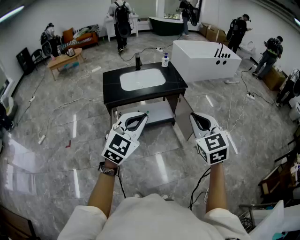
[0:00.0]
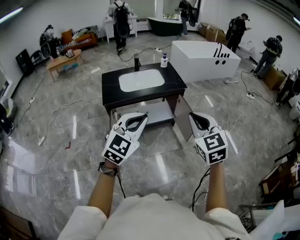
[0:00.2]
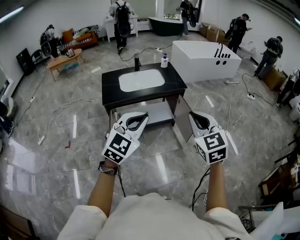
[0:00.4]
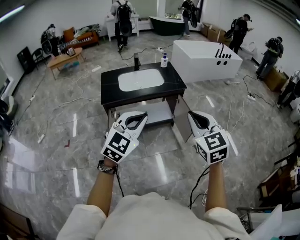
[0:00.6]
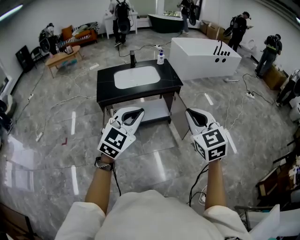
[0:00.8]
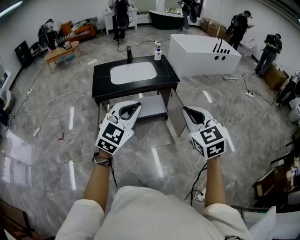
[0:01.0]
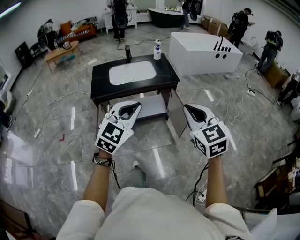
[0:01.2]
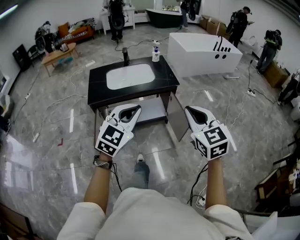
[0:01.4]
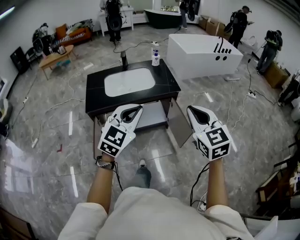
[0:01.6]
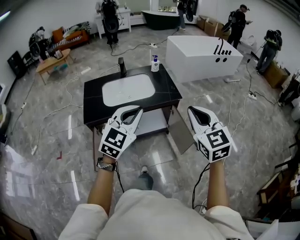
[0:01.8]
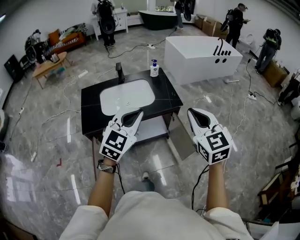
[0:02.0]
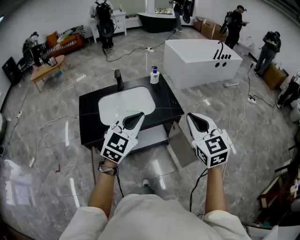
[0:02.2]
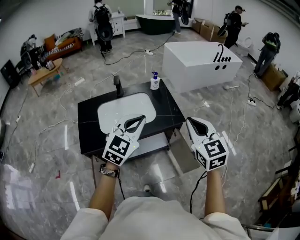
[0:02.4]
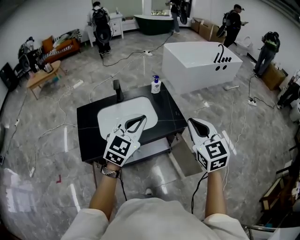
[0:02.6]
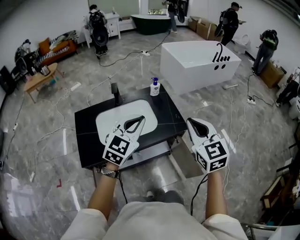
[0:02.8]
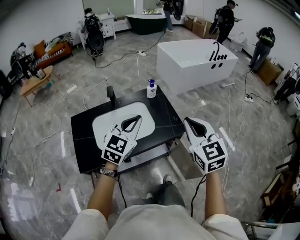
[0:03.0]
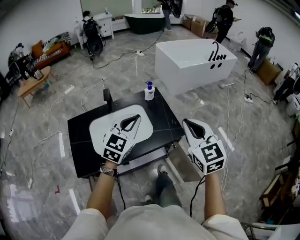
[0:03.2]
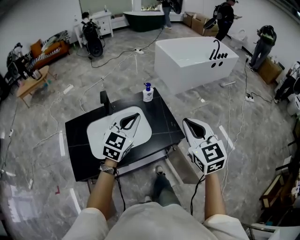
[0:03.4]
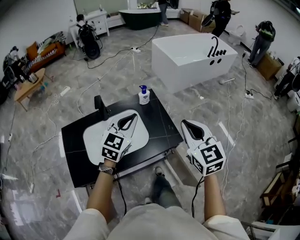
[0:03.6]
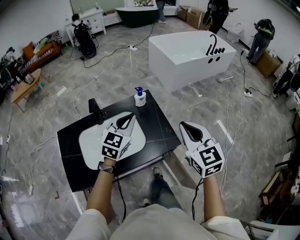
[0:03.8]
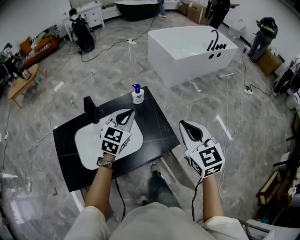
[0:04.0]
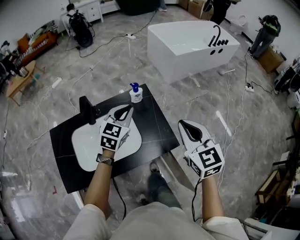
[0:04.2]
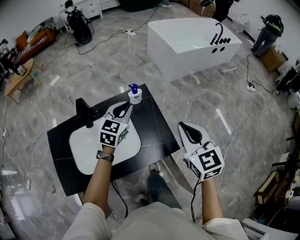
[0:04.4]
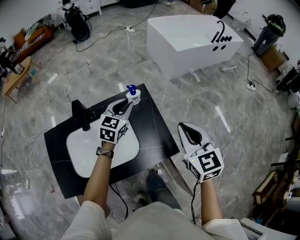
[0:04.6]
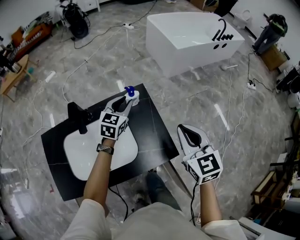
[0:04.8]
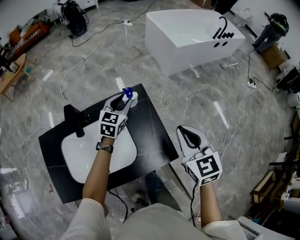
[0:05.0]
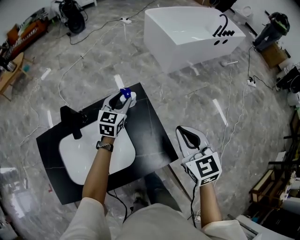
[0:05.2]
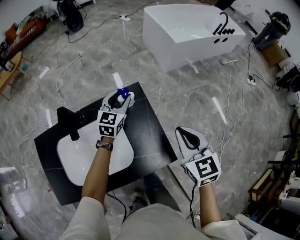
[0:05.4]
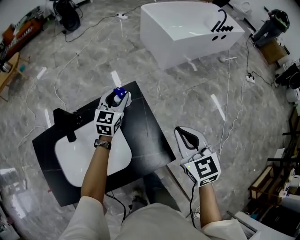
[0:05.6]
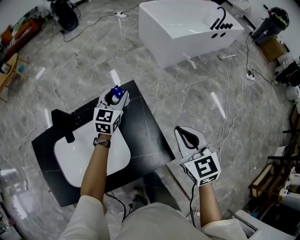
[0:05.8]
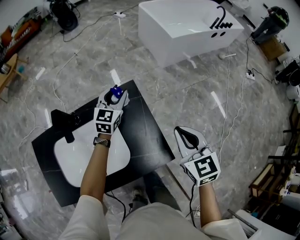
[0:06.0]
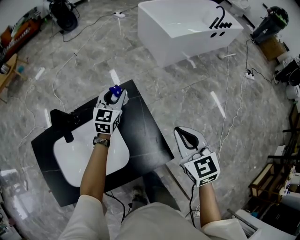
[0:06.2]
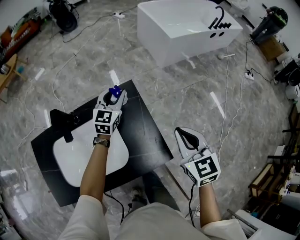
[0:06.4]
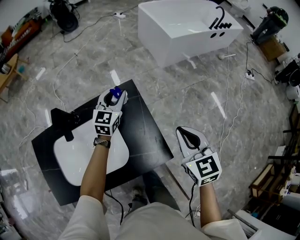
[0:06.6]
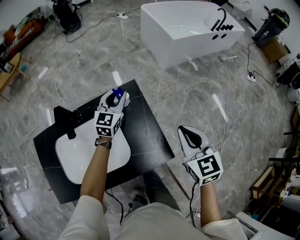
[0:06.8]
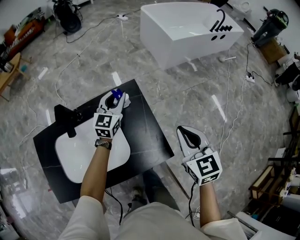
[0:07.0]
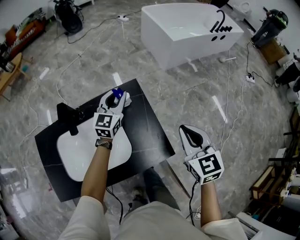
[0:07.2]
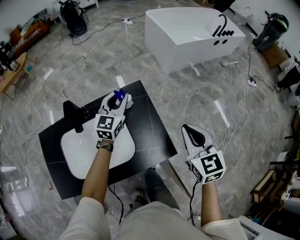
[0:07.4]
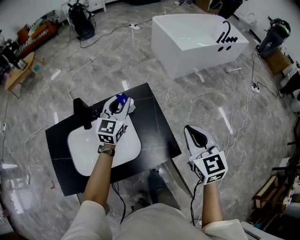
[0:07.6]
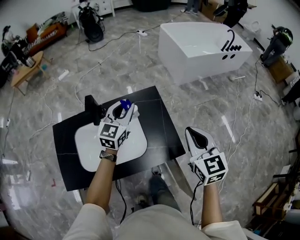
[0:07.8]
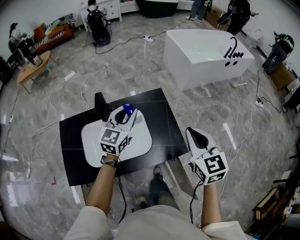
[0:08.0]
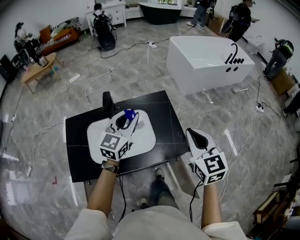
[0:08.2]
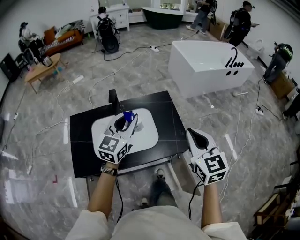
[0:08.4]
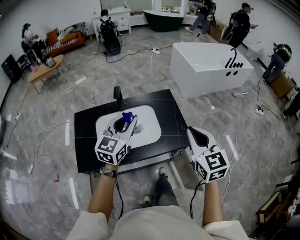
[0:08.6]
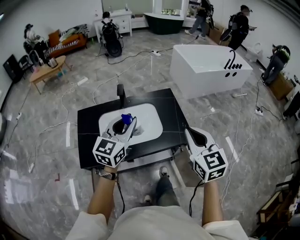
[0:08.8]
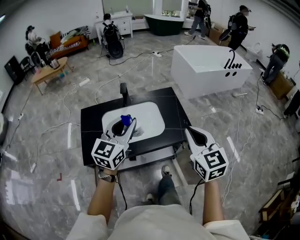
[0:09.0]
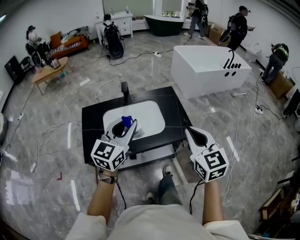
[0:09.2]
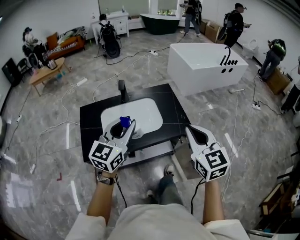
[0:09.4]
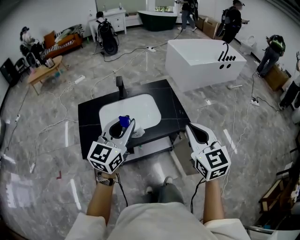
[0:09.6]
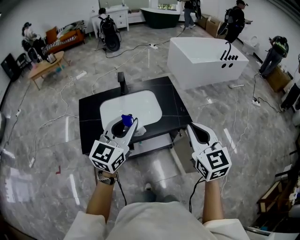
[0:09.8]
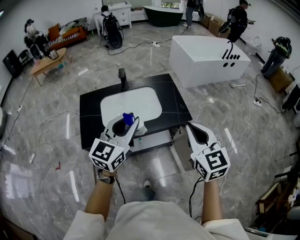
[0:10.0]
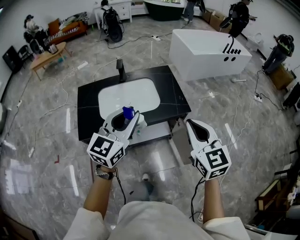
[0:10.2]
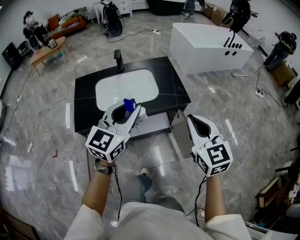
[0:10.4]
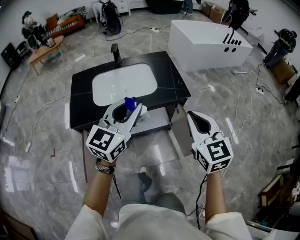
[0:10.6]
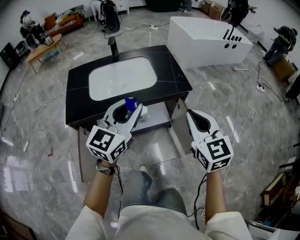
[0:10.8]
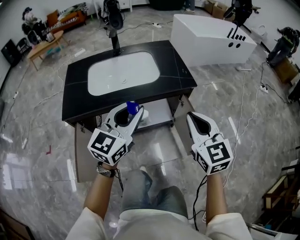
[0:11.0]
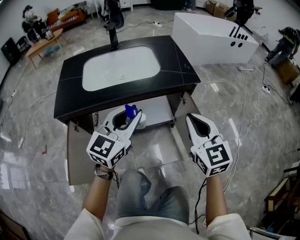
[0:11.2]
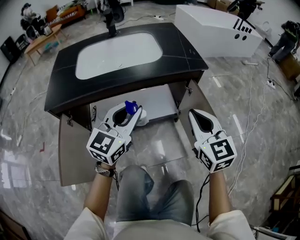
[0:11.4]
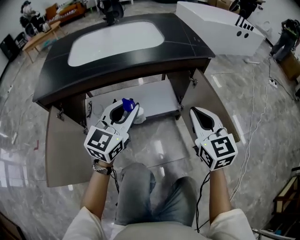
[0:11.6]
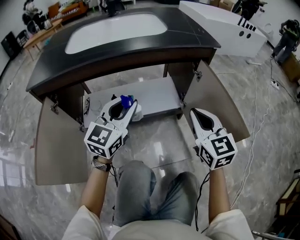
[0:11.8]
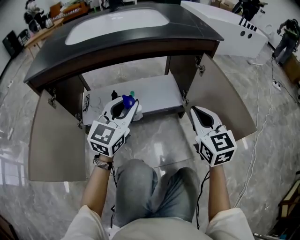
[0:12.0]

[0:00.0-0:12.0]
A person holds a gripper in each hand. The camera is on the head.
0:00.0 to 0:01.6: The grippers both shift forward by roughly 20 cm.
0:01.6 to 0:03.0: Both grippers travel together forward, roughly 40 cm.
0:03.0 to 0:04.4: The two grippers go roughly 30 cm forward and downward.
0:04.4 to 0:06.0: Both grippers travel together forward and downward, some 15 cm. The left gripper opens its fingers.
0:06.0 to 0:07.6: The left gripper goes about 15 cm backward and upward. The right gripper heads backward and upward, covering roughly 10 cm.
0:07.6 to 0:09.0: The left gripper moves backward and upward, about 40 cm, while the right gripper goes some 30 cm backward and to the left.
0:09.0 to 0:10.4: Both grippers travel together backward and to the right, about 15 cm.
0:10.4 to 0:12.0: Both grippers move downward, some 60 cm.

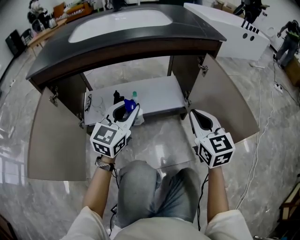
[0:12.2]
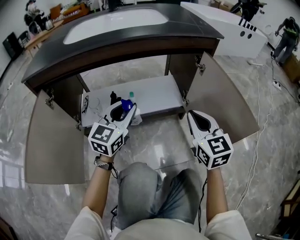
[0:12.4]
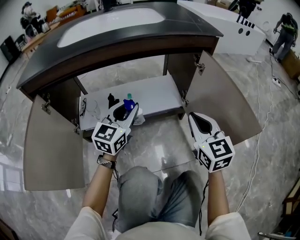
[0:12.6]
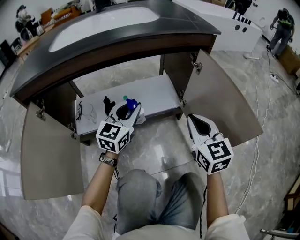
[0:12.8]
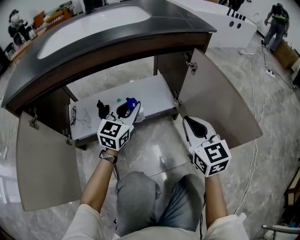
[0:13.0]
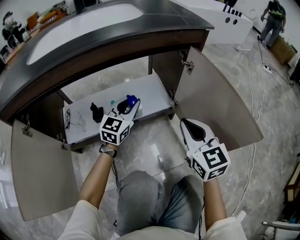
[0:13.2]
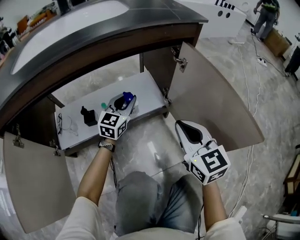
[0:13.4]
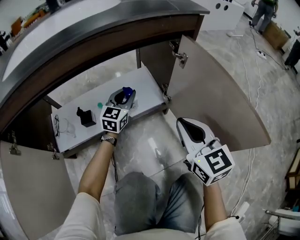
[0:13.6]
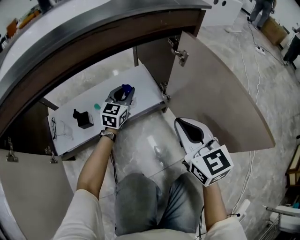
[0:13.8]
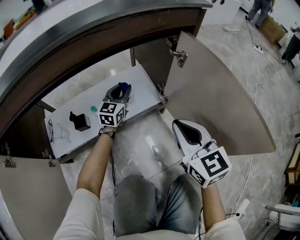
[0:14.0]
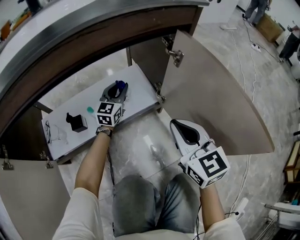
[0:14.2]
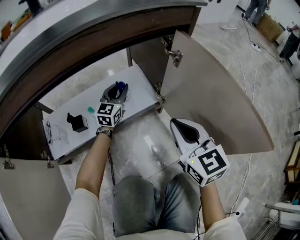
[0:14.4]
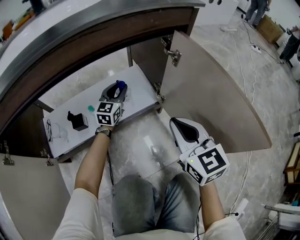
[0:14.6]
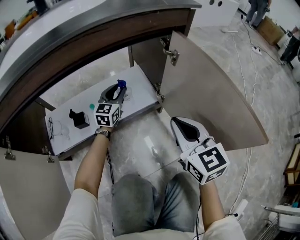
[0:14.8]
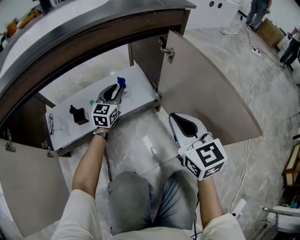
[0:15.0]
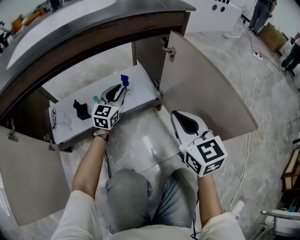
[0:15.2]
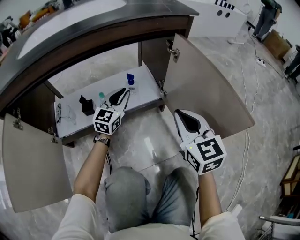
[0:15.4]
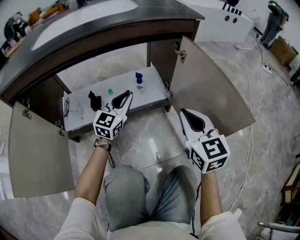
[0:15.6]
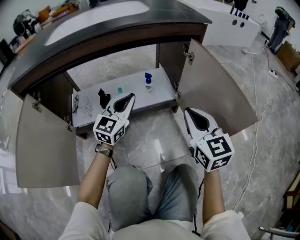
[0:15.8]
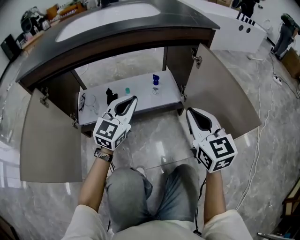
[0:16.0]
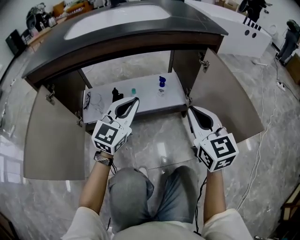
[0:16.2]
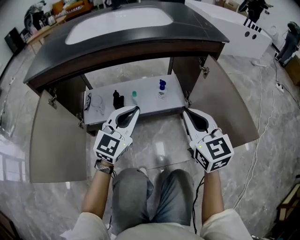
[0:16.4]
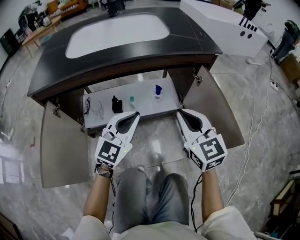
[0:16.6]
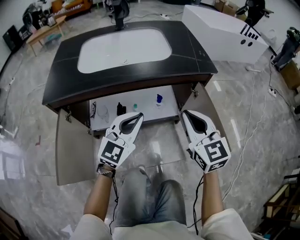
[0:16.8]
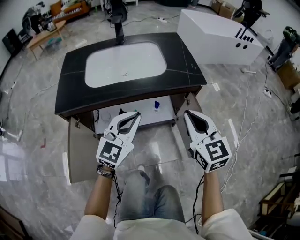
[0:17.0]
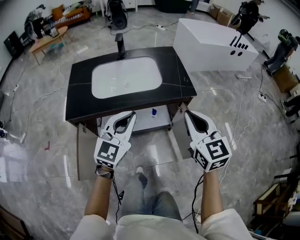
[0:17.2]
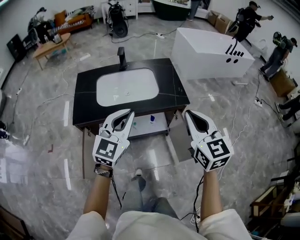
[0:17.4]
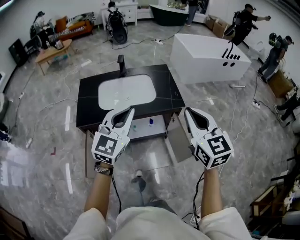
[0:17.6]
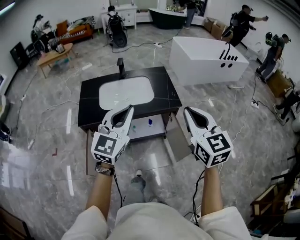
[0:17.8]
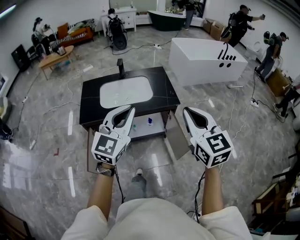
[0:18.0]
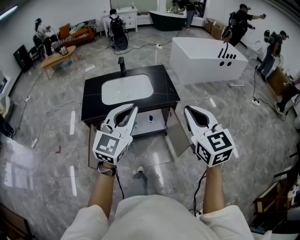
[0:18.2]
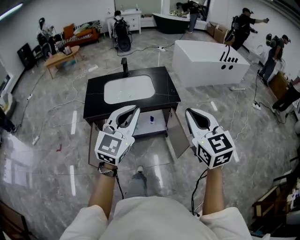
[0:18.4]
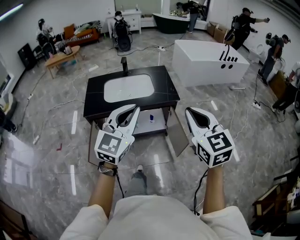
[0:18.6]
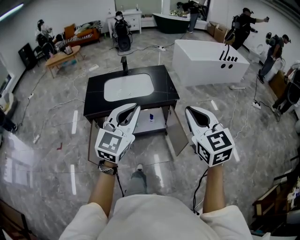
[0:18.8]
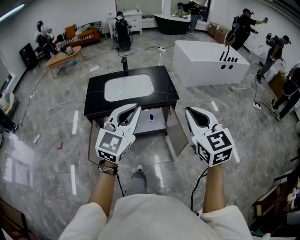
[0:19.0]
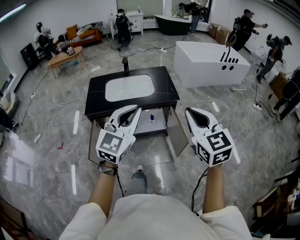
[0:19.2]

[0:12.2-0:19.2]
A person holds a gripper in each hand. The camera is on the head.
0:12.2 to 0:13.6: The left gripper moves forward and downward, about 30 cm; the right gripper moves downward and forward, some 10 cm.
0:15.0 to 0:16.4: The left gripper travels backward and upward by about 30 cm, and closes. Meanwhile the right gripper is displaced upward, to the left and backward by roughly 15 cm.
0:16.4 to 0:17.8: The grippers both shift upward by roughly 60 cm.
0:17.8 to 0:19.2: The right gripper shifts about 15 cm backward, while the left gripper goes some 15 cm backward and to the right.

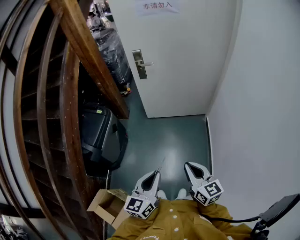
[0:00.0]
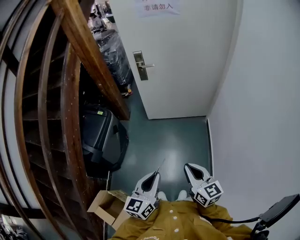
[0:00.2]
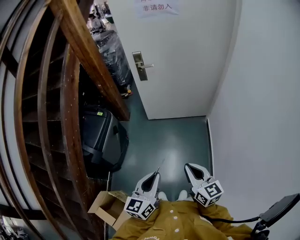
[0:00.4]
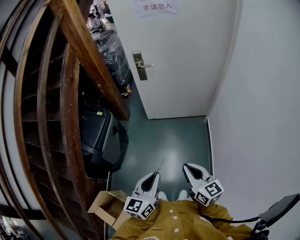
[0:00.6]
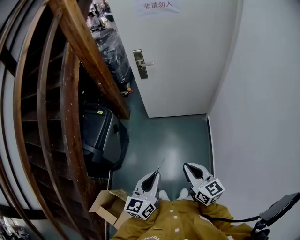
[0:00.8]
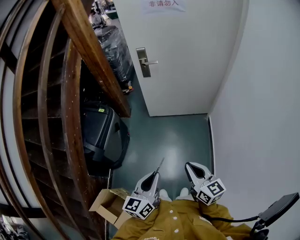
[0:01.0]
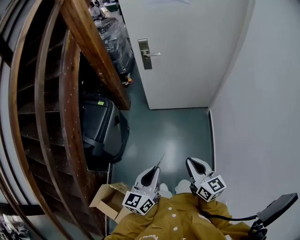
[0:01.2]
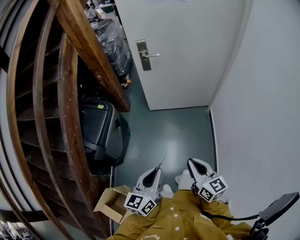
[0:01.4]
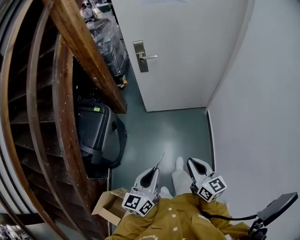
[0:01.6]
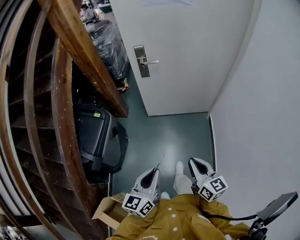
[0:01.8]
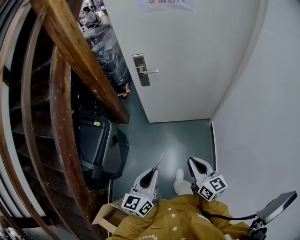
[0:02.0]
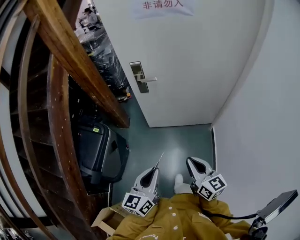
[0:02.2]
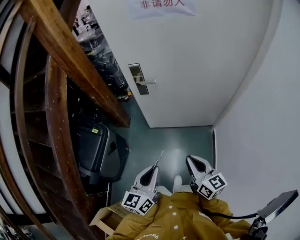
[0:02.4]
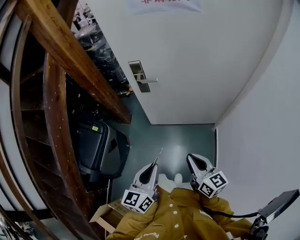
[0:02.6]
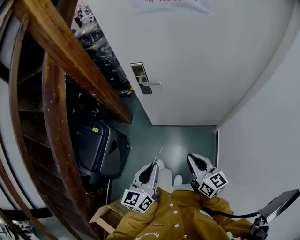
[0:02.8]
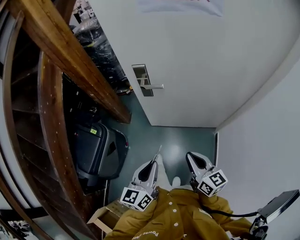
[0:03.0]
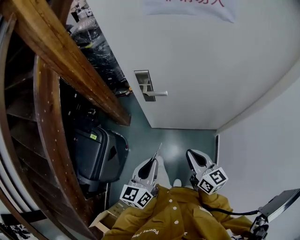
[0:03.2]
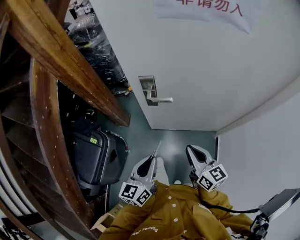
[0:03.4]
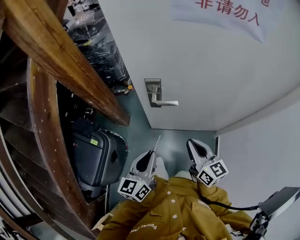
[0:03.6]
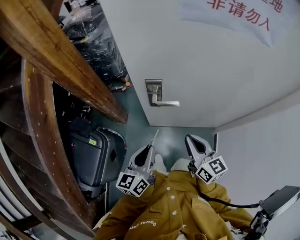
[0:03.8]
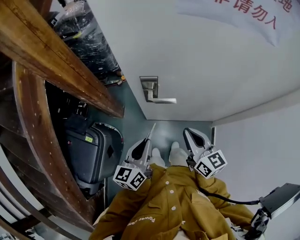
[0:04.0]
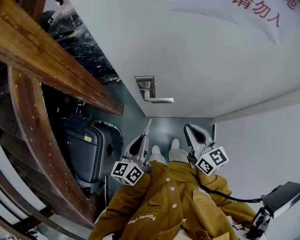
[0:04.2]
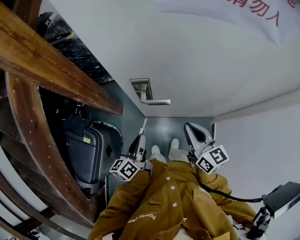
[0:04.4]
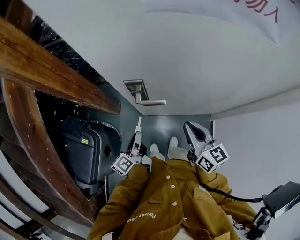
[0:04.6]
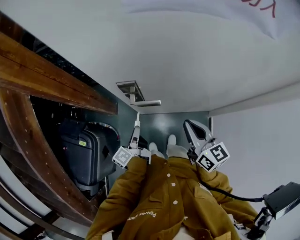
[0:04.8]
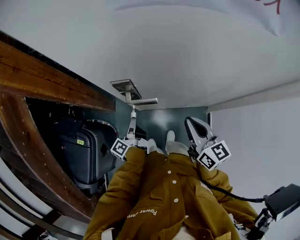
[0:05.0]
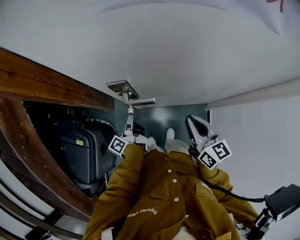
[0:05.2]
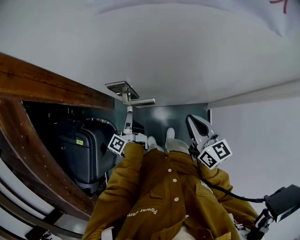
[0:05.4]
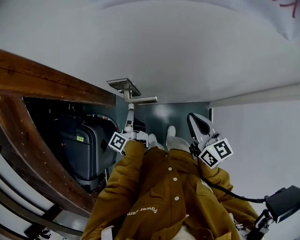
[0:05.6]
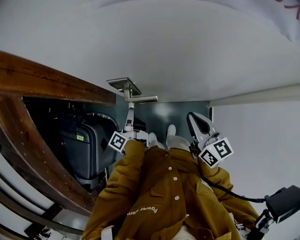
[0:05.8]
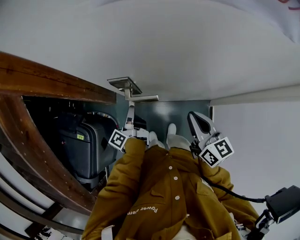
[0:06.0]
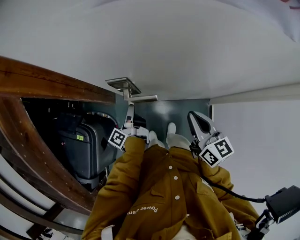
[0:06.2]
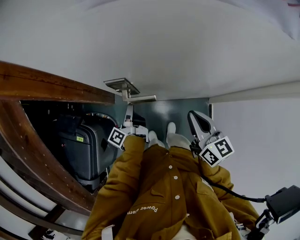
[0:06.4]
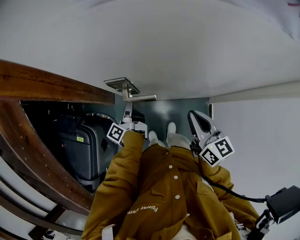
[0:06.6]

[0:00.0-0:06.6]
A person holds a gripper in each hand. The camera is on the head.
0:00.0 to 0:01.6: The right gripper heads forward, covering roughly 5 cm; the left gripper is displaced forward and to the left by about 10 cm.
0:01.6 to 0:03.2: Both grippers are carried forward, roughly 40 cm.
0:03.2 to 0:05.0: The right gripper is displaced forward by some 20 cm. The left gripper heads forward and downward, covering about 35 cm, and twists some 60 degrees counterclockwise, seen from behind.
0:05.0 to 0:06.6: The left gripper travels forward by some 5 cm.
